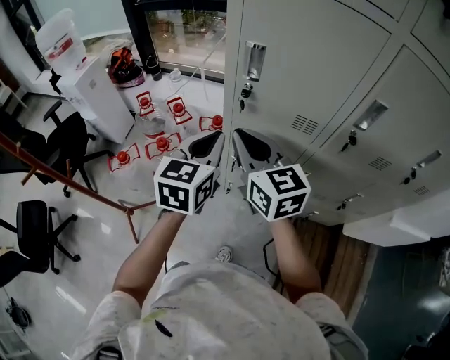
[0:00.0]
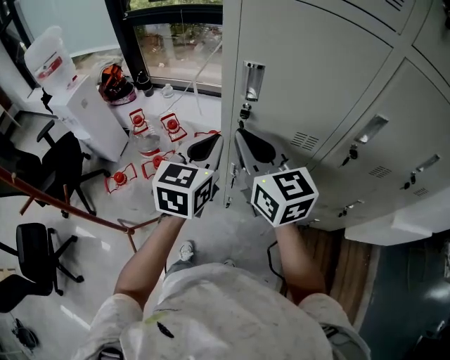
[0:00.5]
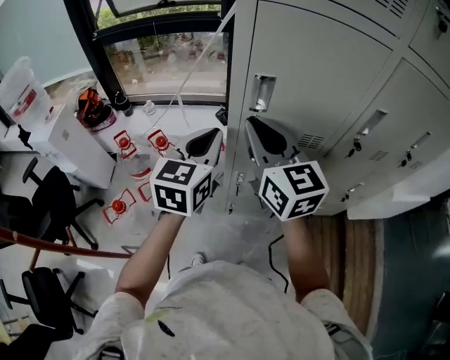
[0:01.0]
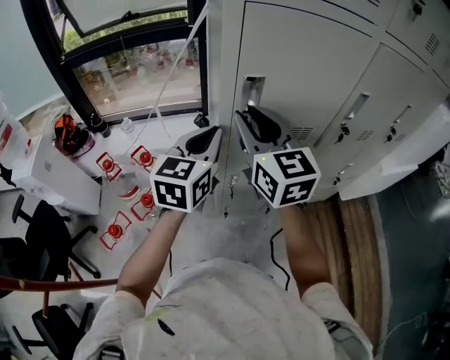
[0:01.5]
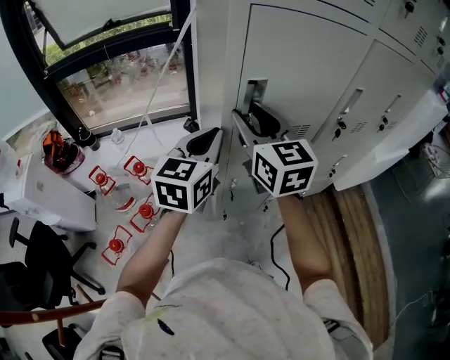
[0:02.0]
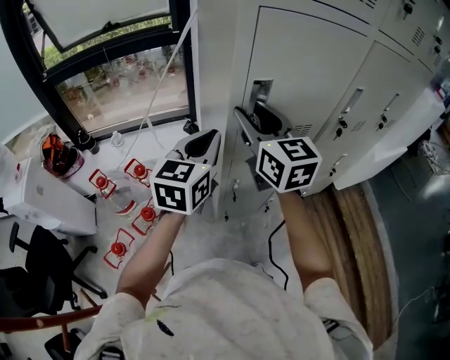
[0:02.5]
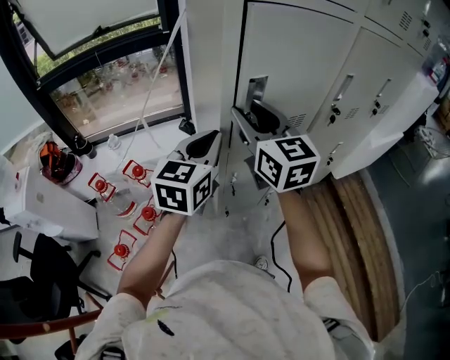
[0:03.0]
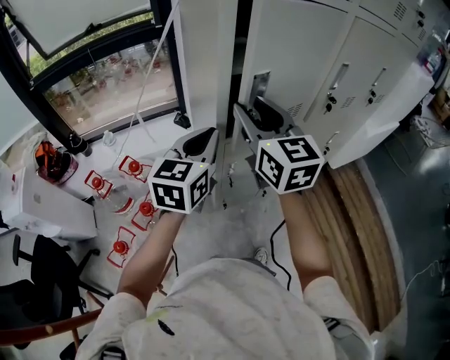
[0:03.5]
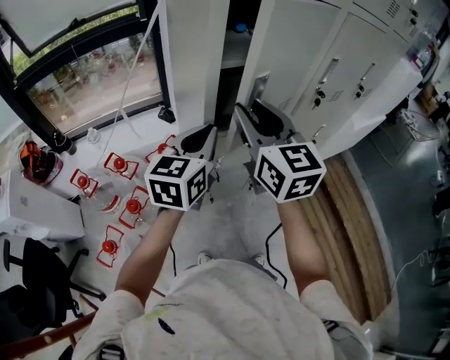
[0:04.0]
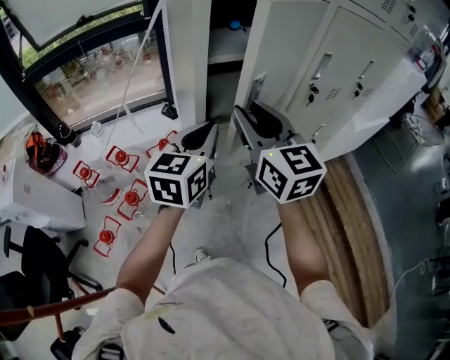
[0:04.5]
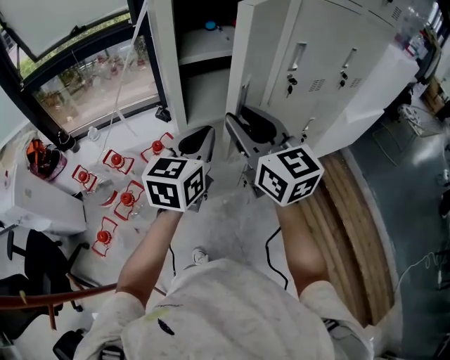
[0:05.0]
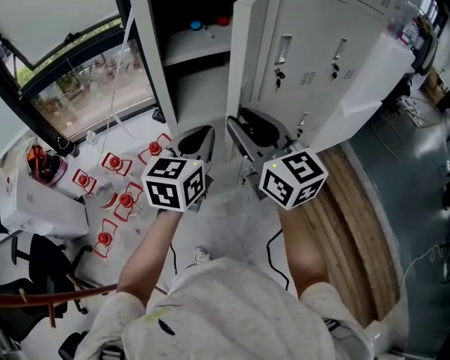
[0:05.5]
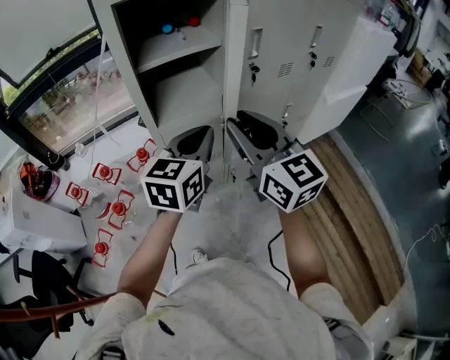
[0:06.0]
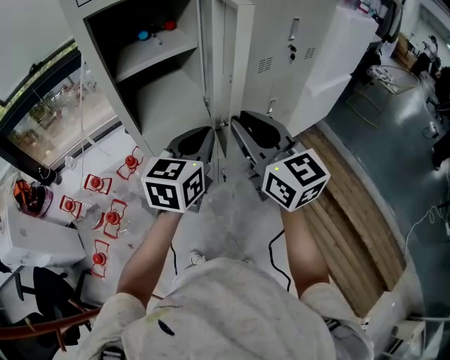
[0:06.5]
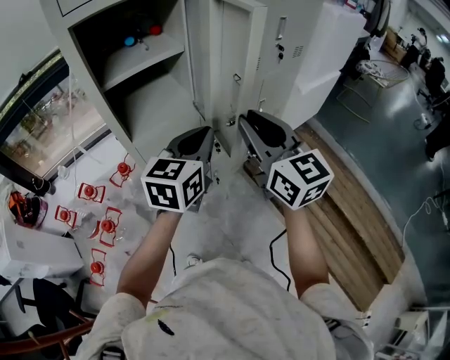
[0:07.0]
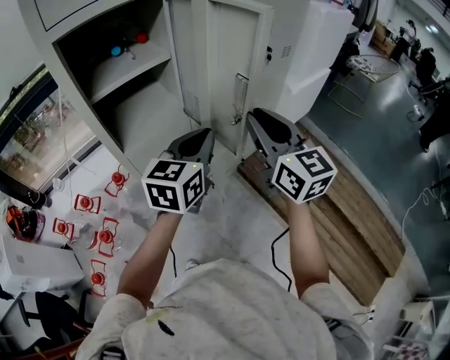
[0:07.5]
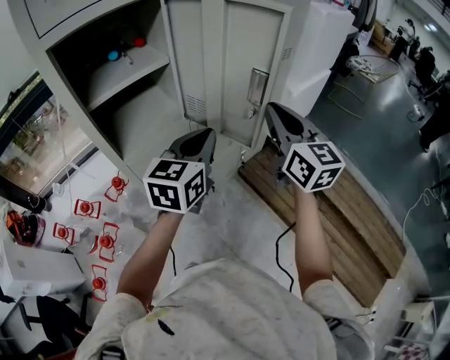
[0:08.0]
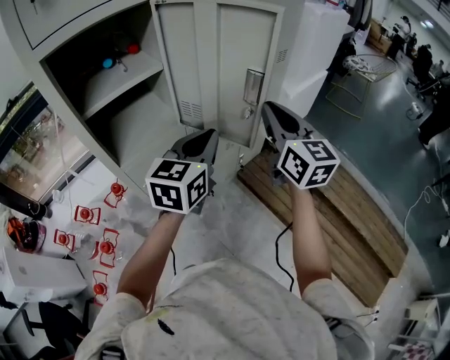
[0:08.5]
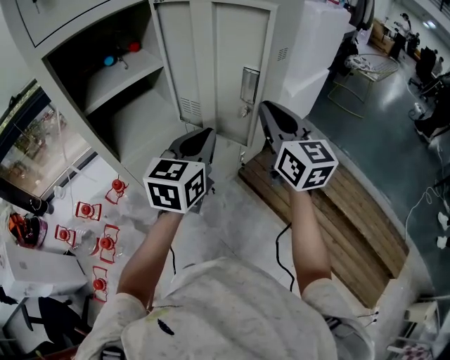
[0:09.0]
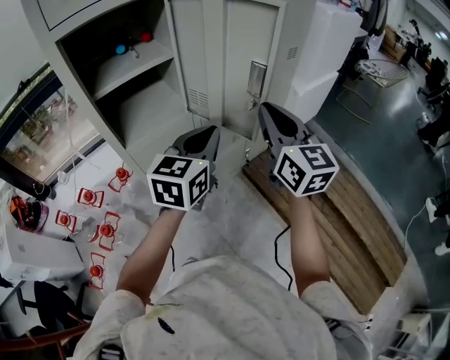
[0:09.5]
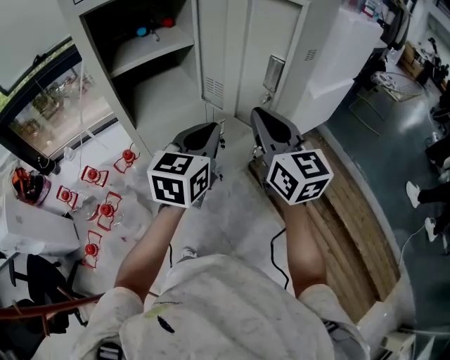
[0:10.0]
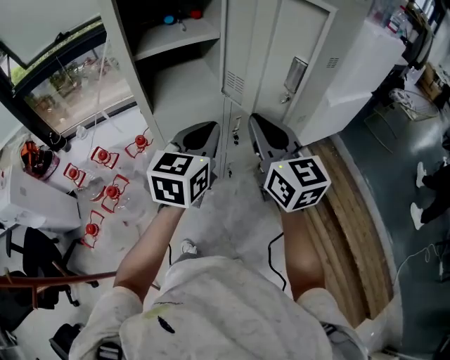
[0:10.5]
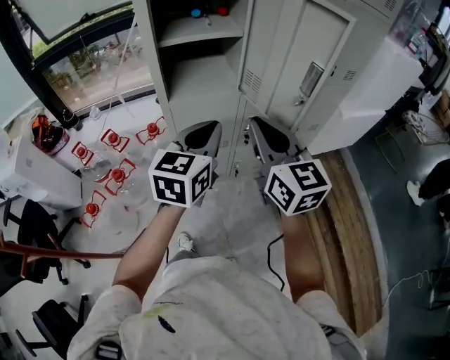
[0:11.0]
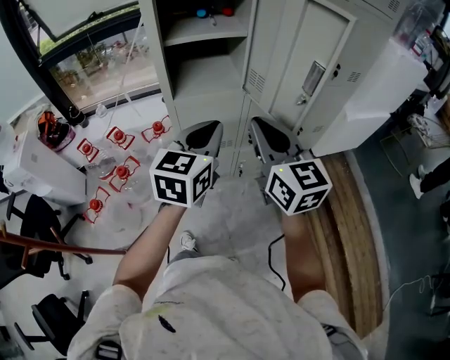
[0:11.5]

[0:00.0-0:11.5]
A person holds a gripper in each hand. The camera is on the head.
0:00.0 to 0:02.0: The right gripper changes place by some 15 cm, swivels some 40 degrees, and opens; the left gripper ends up about 15 cm from where it was, and rotates some 30 degrees.
0:02.0 to 0:04.0: The right gripper shifts about 5 cm backward.
0:04.0 to 0:06.0: Both grippers travel together to the right and backward, about 20 cm.
0:06.0 to 0:07.5: The two grippers go some 10 cm to the right.
0:09.5 to 0:11.5: The grippers both shift to the left and backward by about 15 cm. The right gripper changes its angle by about 20 degrees. Meanwhile the left gripper changes its angle by about 20 degrees.

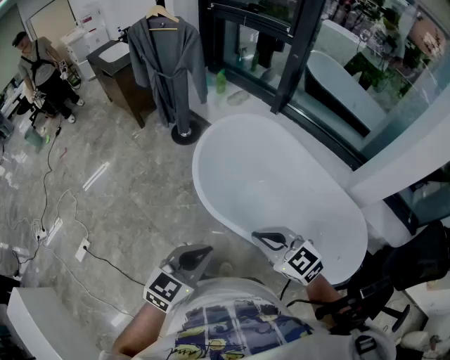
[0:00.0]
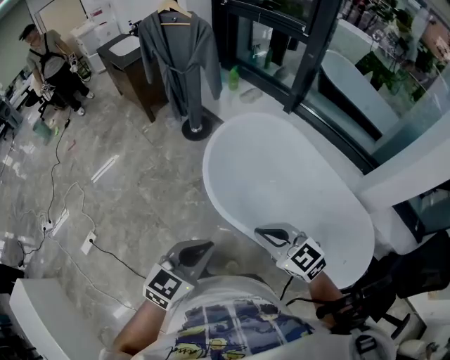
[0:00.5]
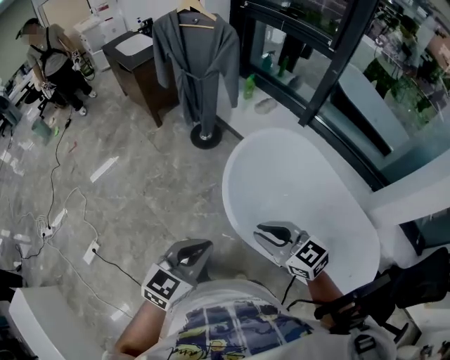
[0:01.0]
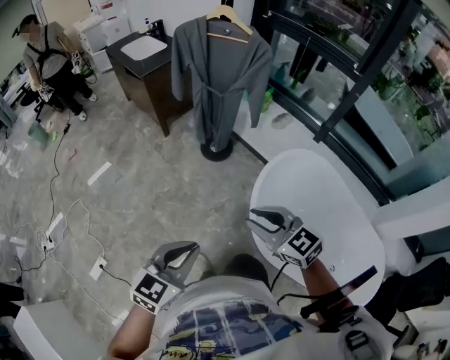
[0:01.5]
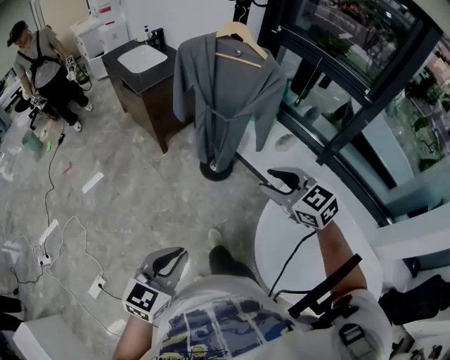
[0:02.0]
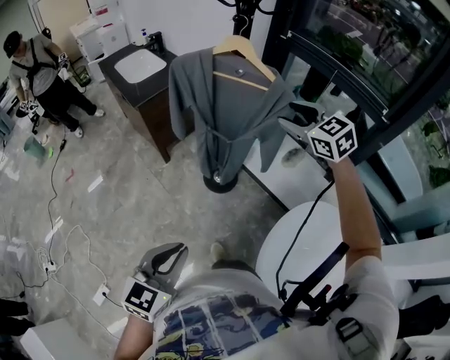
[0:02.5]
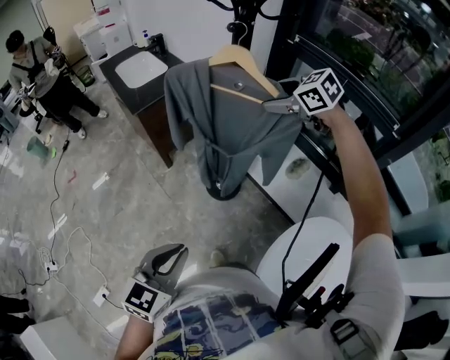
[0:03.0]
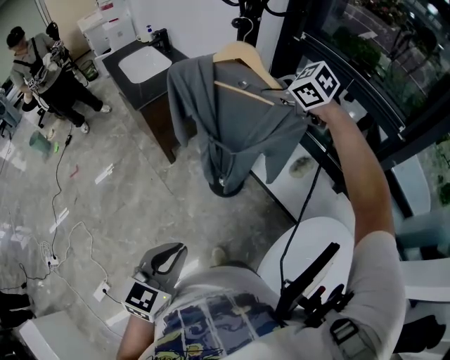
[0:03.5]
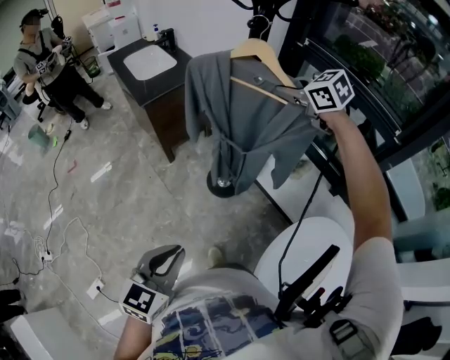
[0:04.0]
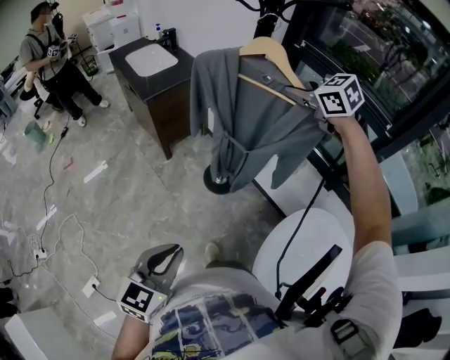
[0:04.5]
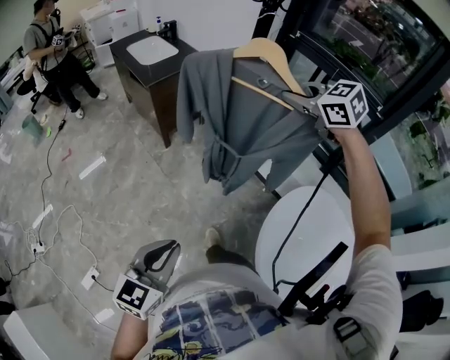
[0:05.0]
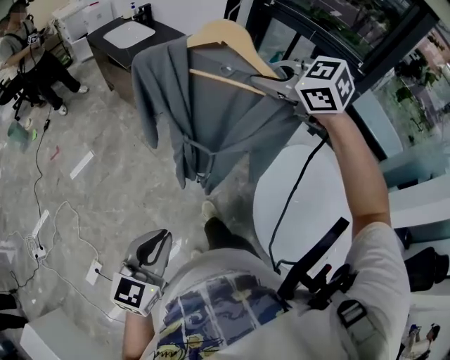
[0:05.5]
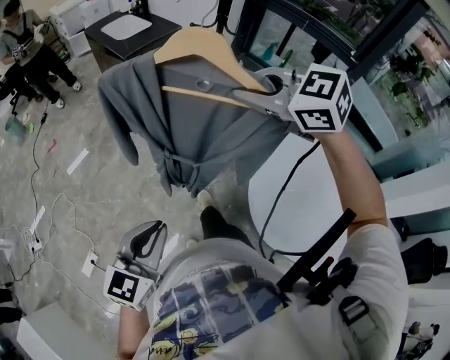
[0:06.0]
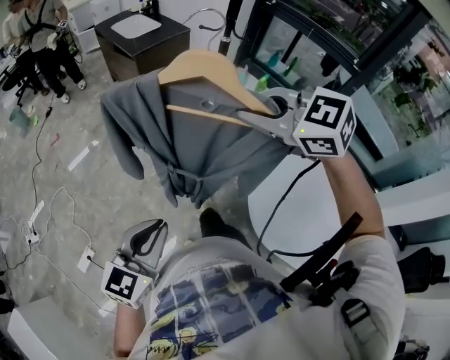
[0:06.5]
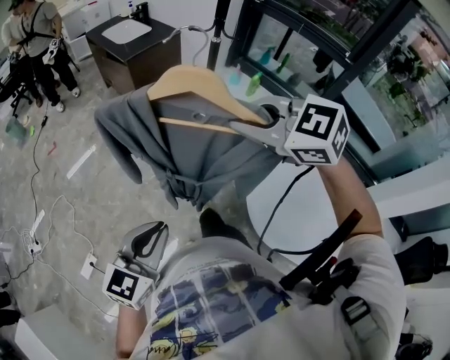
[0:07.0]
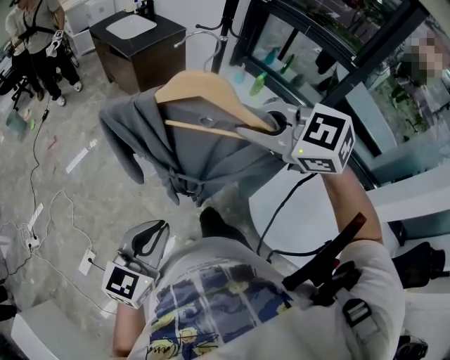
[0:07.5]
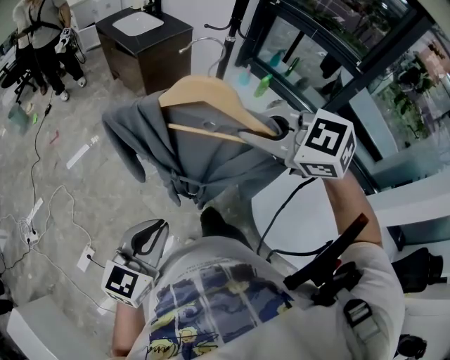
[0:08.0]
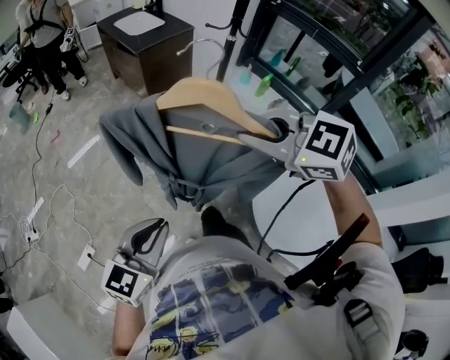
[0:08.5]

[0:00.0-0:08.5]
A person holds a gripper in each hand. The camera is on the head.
0:00.0 to 0:02.0: Both grippers are carried forward and to the left, some 50 cm. The right gripper opens up.
0:02.0 to 0:04.0: The right gripper moves forward, some 40 cm, and closes its fingers. Meanwhile the left gripper heads forward, covering about 20 cm.
0:04.0 to 0:06.5: The left gripper heads backward and to the left, covering approximately 25 cm, while the right gripper heads backward and to the left, covering roughly 50 cm.
0:06.5 to 0:08.5: The right gripper moves some 5 cm.

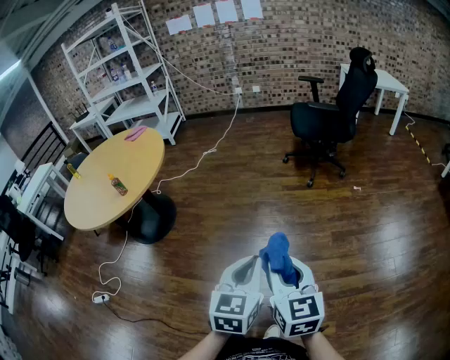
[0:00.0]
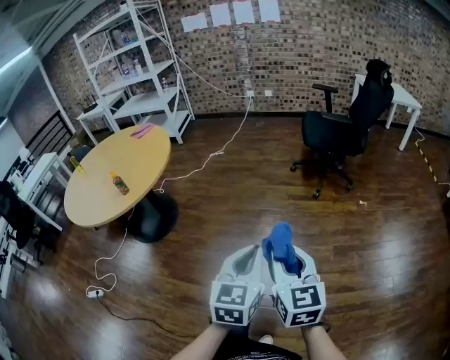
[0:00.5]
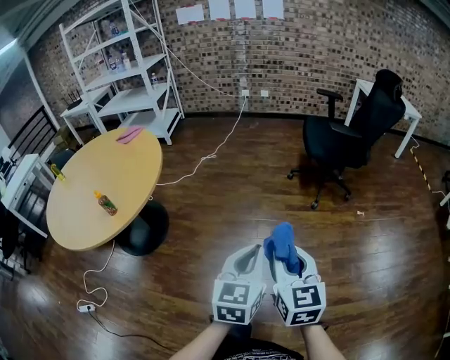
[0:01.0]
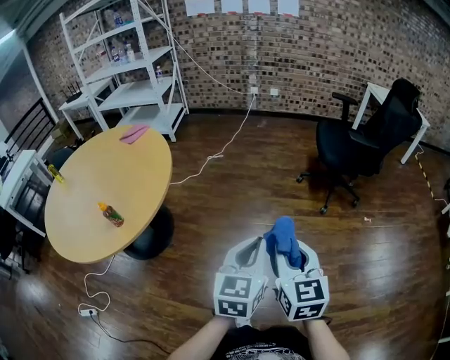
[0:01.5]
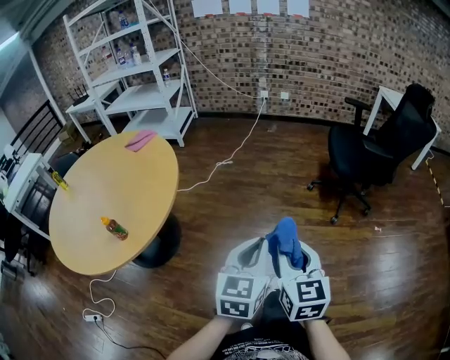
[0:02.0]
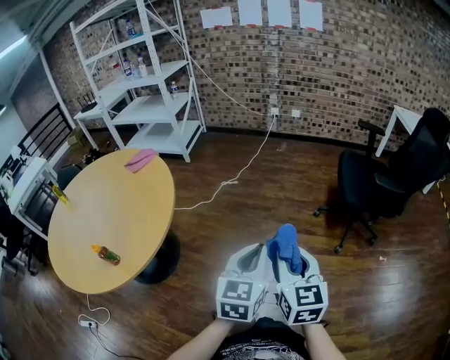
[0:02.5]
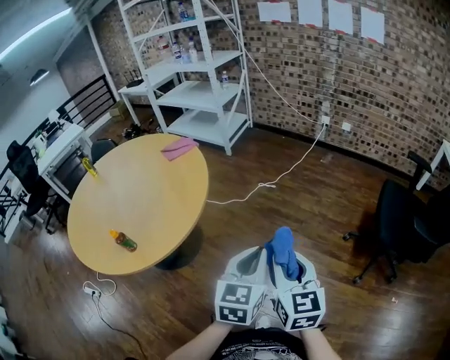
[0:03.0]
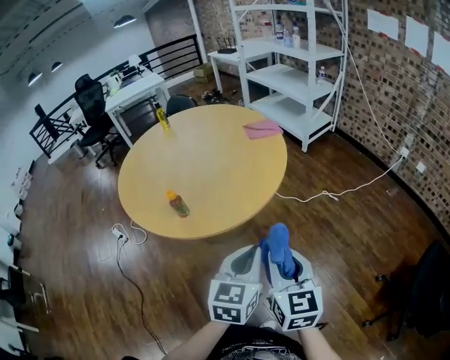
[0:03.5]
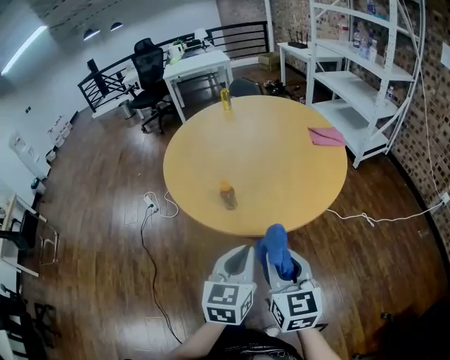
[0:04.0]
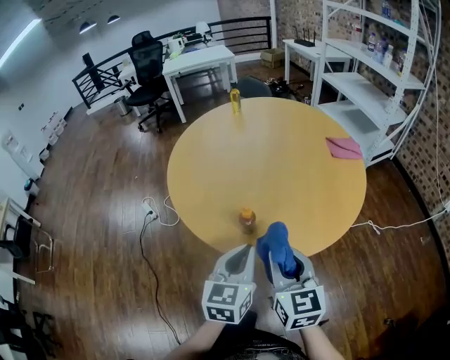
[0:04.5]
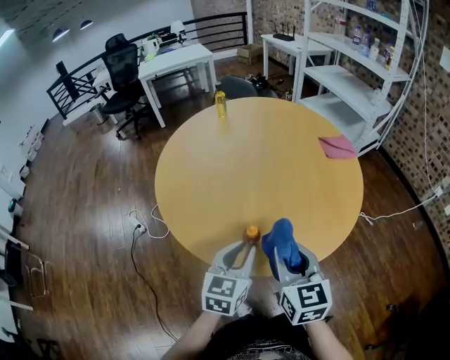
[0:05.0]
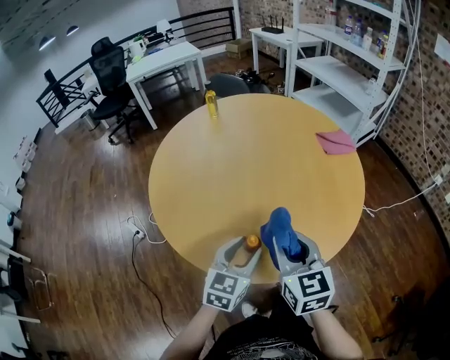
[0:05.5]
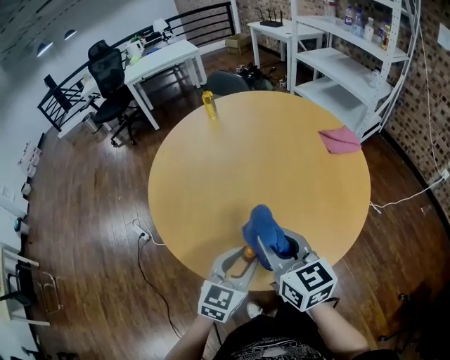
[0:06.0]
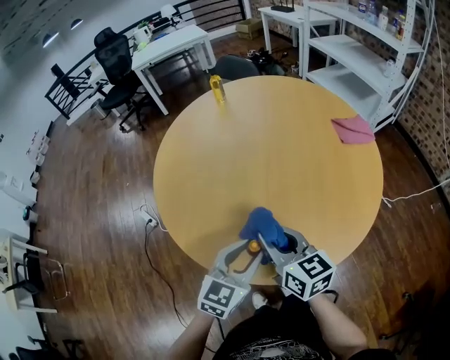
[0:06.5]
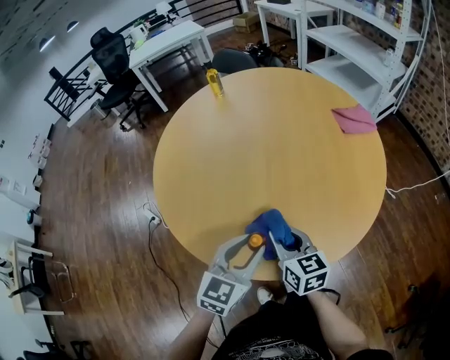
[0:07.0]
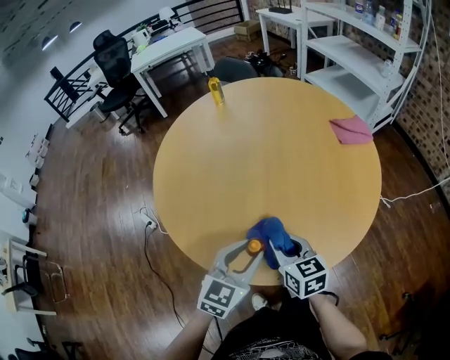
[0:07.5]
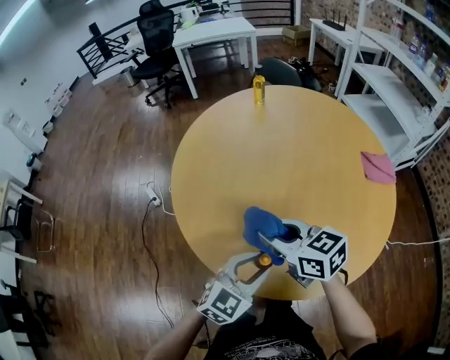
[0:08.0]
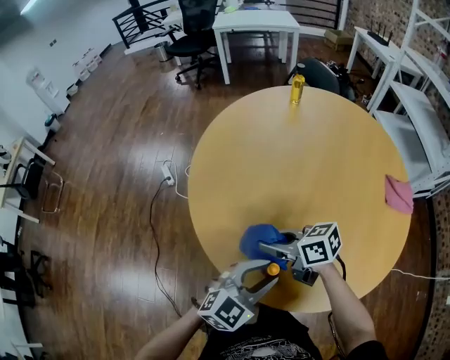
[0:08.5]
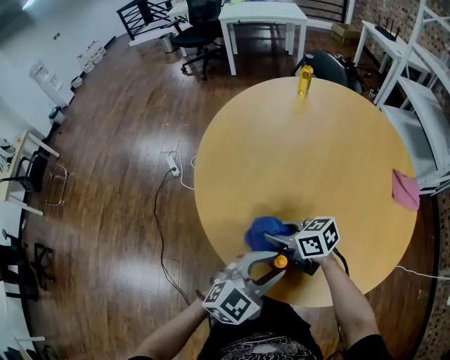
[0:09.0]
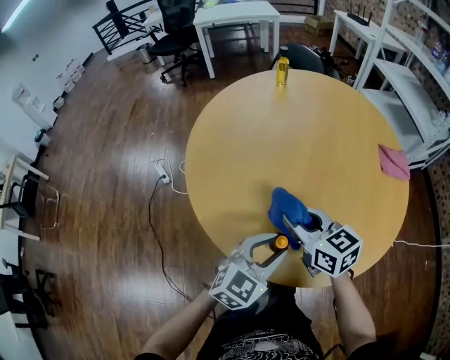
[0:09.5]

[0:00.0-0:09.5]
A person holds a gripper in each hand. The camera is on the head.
0:00.0 to 0:02.0: The two grippers travel together, forward and to the left, some 40 cm.
0:02.0 to 0:04.0: The right gripper moves roughly 35 cm, and rotates roughly 70 degrees. Meanwhile the left gripper changes place by some 35 cm, and turns by some 70 degrees.
0:04.0 to 0:05.5: Both grippers move forward and to the left, roughly 25 cm. The left gripper rotates some 20 degrees, and opens.
0:05.5 to 0:07.5: The right gripper goes about 15 cm downward.
0:07.5 to 0:09.5: The right gripper moves up and down over some 15 cm, changing direction 2 times, and rotates about 30 degrees.
